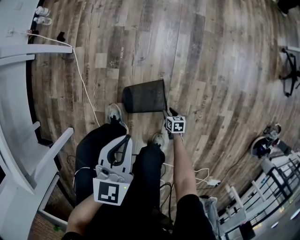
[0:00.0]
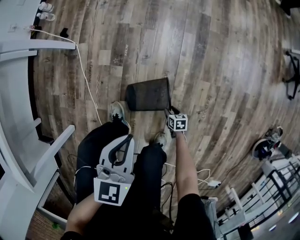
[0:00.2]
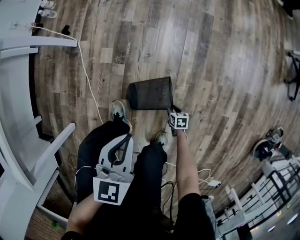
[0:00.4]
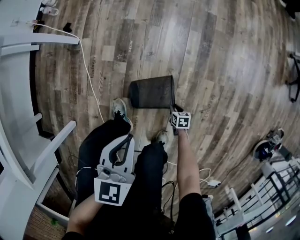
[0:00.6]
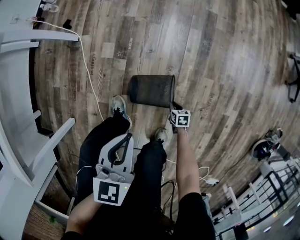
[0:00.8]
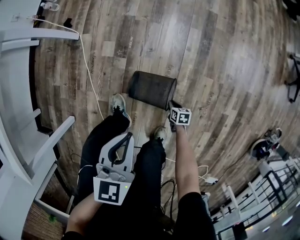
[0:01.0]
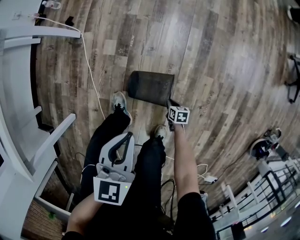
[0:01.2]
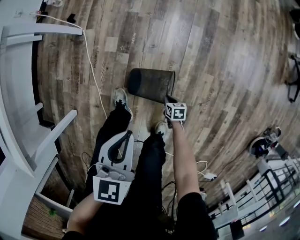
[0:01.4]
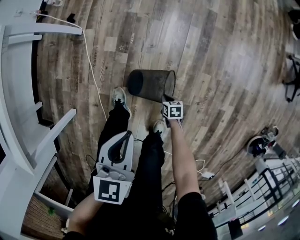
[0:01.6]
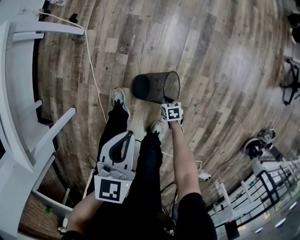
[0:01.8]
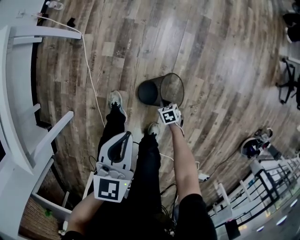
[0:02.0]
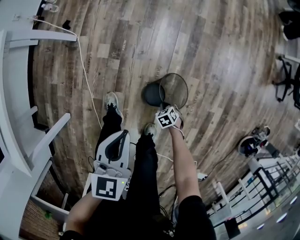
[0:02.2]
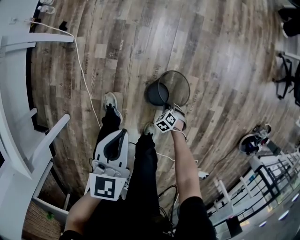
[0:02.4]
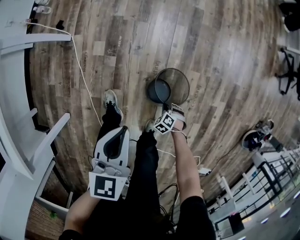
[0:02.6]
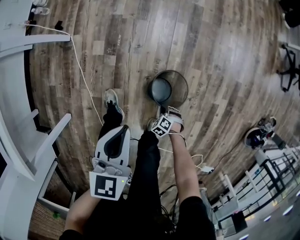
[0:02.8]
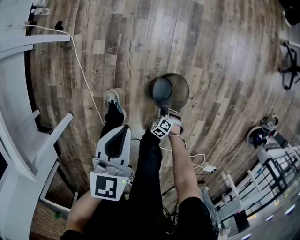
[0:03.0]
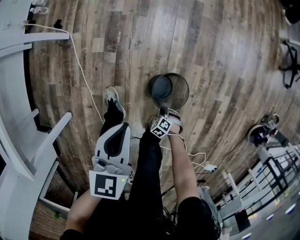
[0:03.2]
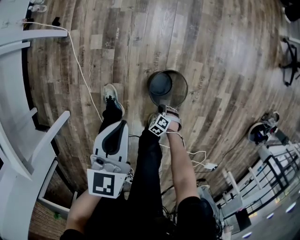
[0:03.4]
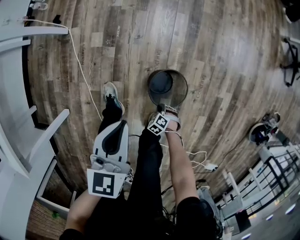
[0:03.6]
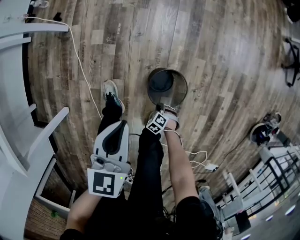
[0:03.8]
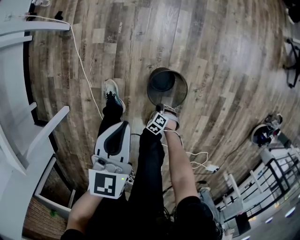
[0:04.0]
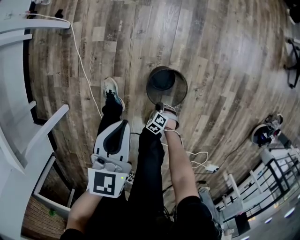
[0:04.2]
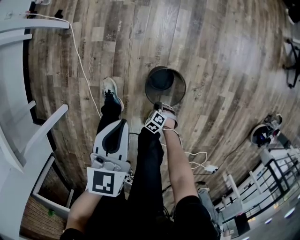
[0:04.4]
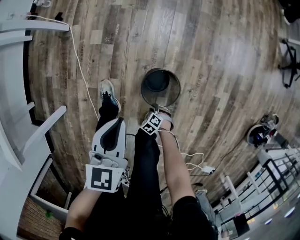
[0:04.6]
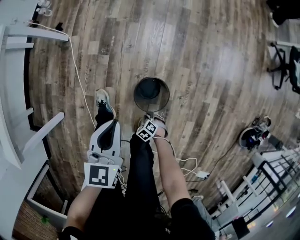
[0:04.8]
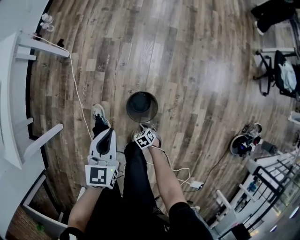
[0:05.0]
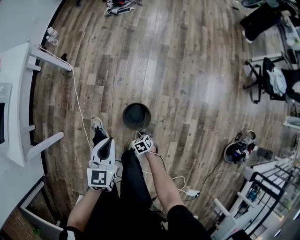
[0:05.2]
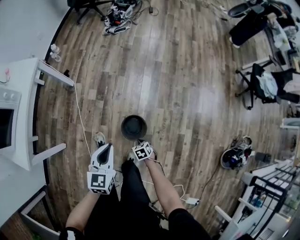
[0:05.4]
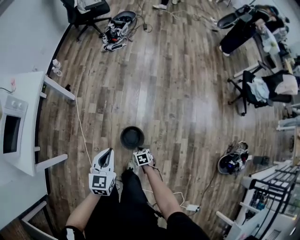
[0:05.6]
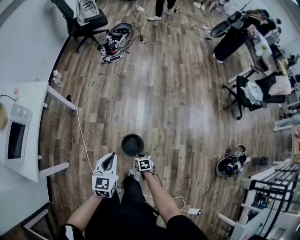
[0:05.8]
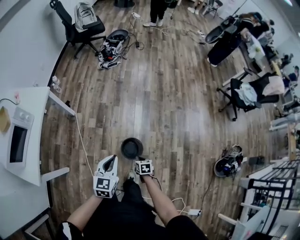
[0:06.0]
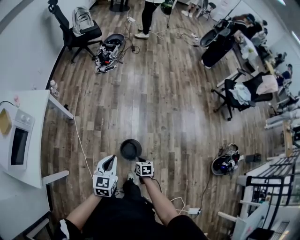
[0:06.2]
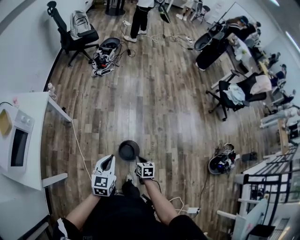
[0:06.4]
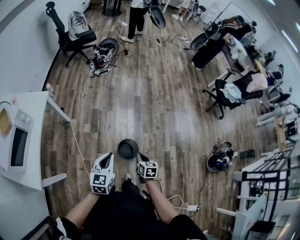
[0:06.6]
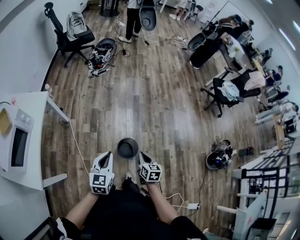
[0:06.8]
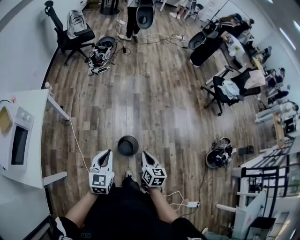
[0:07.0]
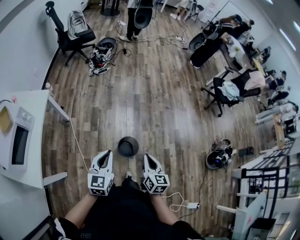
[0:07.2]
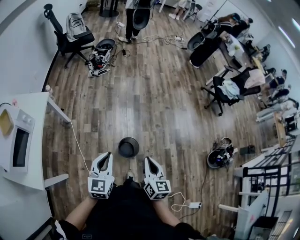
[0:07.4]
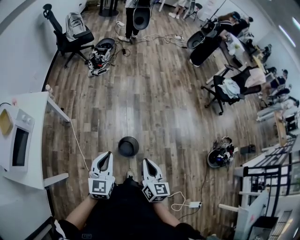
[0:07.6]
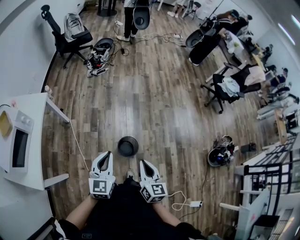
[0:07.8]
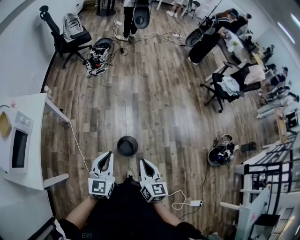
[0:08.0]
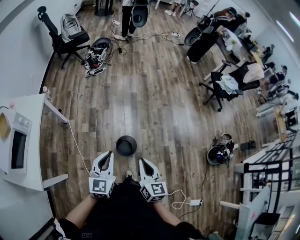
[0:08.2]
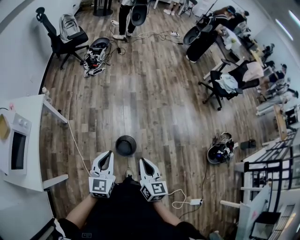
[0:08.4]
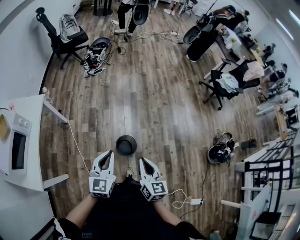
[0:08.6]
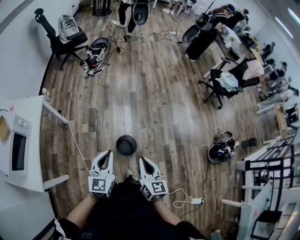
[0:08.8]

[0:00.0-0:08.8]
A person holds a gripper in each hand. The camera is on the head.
0:00.0 to 0:01.4: The right gripper ends up approximately 10 cm from where it was, and closes.
0:01.4 to 0:03.0: The right gripper moves some 10 cm, and twists about 50 degrees counterclockwise, seen from behind; the left gripper changes place by approximately 5 cm.
0:03.0 to 0:04.4: The left gripper changes place by approximately 10 cm; the right gripper shifts by approximately 10 cm.
0:04.4 to 0:05.8: Both grippers travel together upward, approximately 35 cm. The right gripper twists approximately 50 degrees clockwise, seen from behind.
0:05.8 to 0:07.4: The left gripper shifts some 15 cm upward, to the left and backward, while the right gripper shifts roughly 40 cm upward, and tilts its fingers approximately 40 degrees upward.
0:07.4 to 0:08.8: The grippers stay close to where they were, moving slightly.

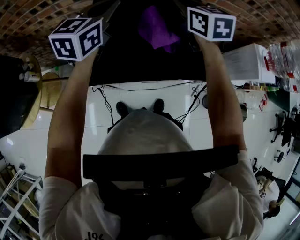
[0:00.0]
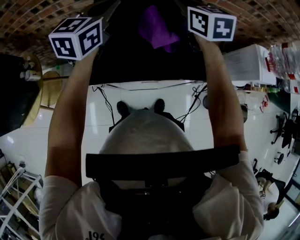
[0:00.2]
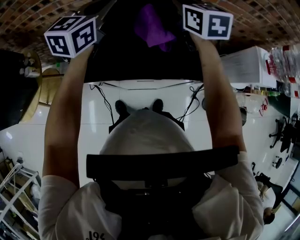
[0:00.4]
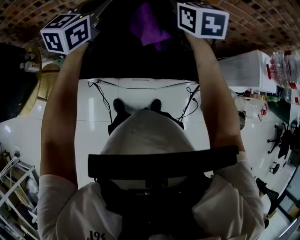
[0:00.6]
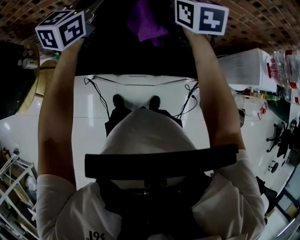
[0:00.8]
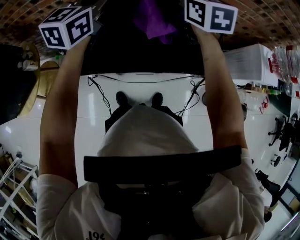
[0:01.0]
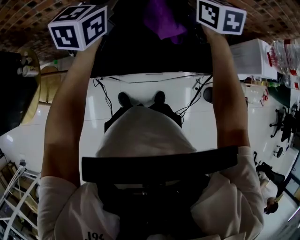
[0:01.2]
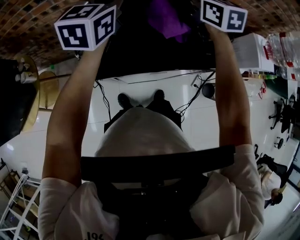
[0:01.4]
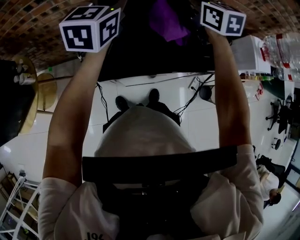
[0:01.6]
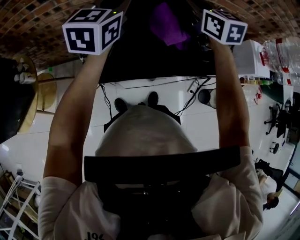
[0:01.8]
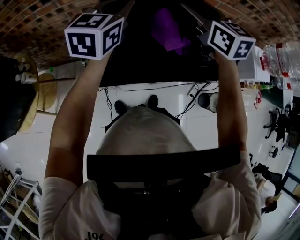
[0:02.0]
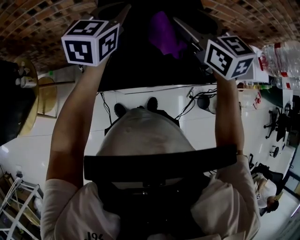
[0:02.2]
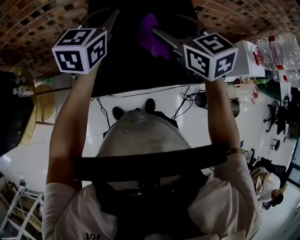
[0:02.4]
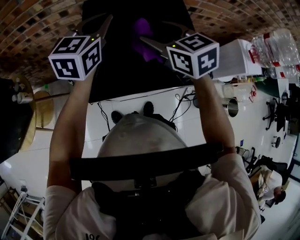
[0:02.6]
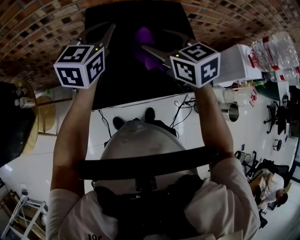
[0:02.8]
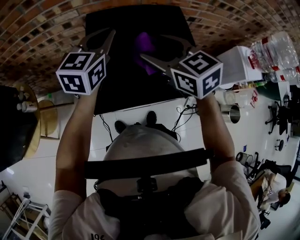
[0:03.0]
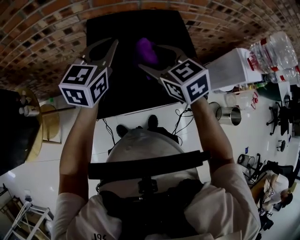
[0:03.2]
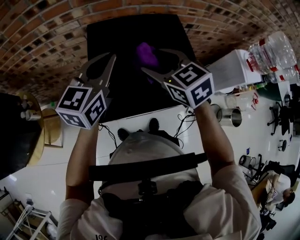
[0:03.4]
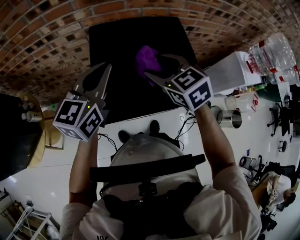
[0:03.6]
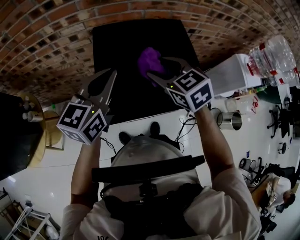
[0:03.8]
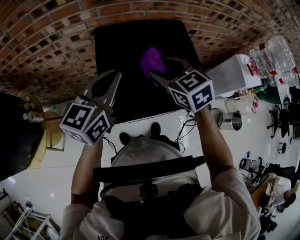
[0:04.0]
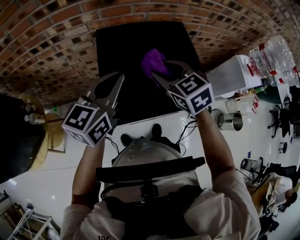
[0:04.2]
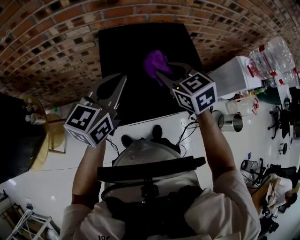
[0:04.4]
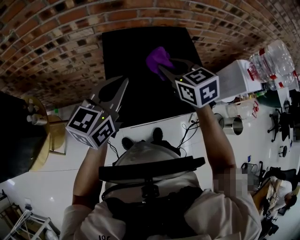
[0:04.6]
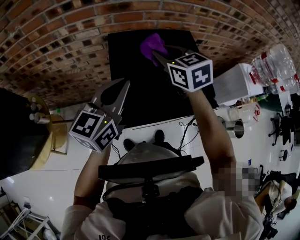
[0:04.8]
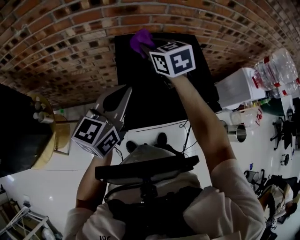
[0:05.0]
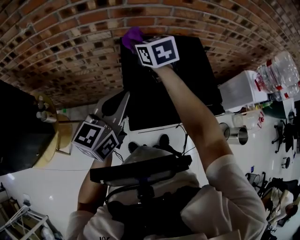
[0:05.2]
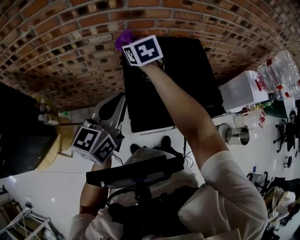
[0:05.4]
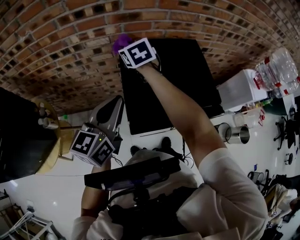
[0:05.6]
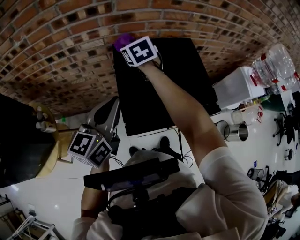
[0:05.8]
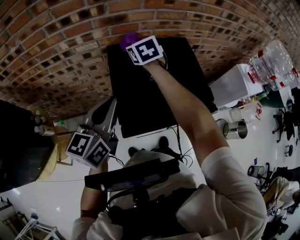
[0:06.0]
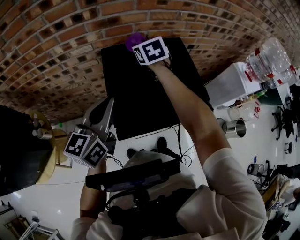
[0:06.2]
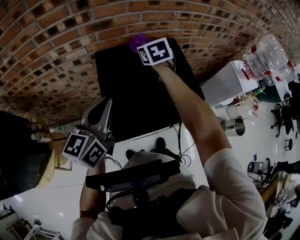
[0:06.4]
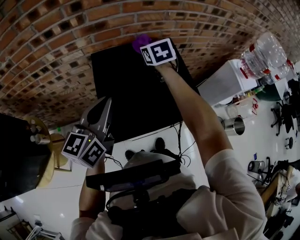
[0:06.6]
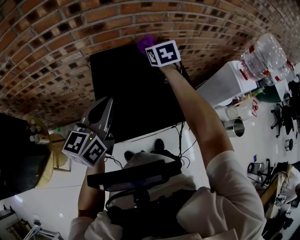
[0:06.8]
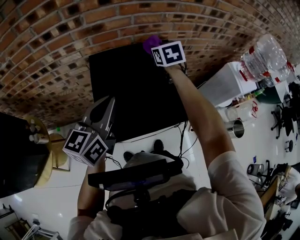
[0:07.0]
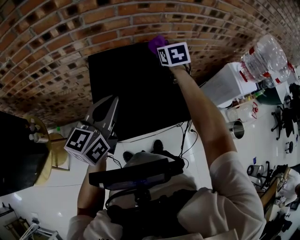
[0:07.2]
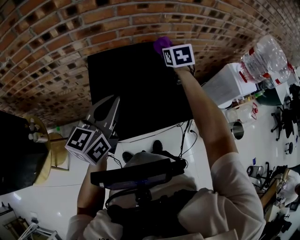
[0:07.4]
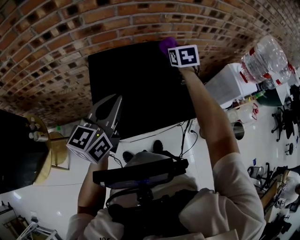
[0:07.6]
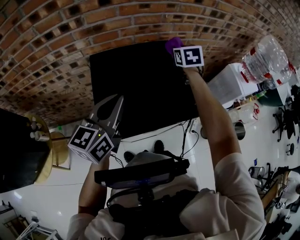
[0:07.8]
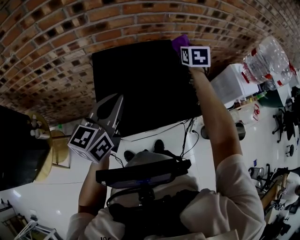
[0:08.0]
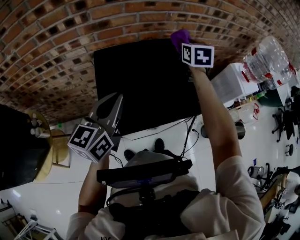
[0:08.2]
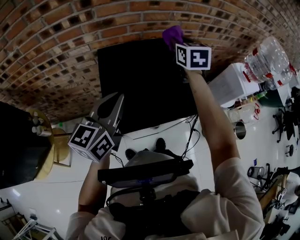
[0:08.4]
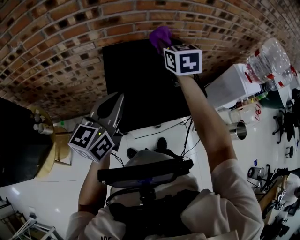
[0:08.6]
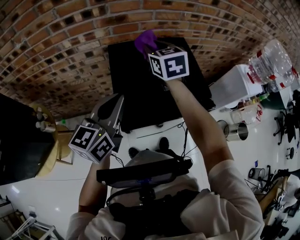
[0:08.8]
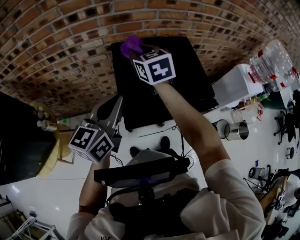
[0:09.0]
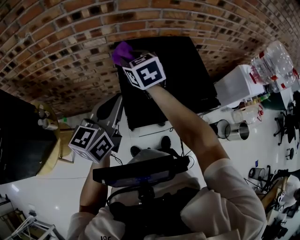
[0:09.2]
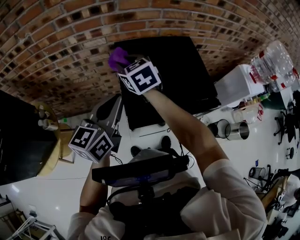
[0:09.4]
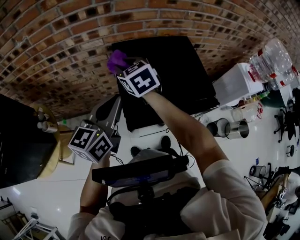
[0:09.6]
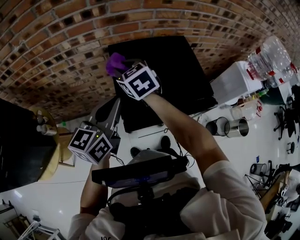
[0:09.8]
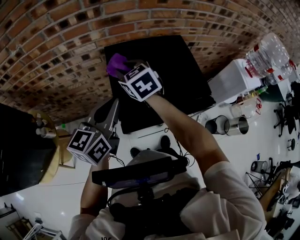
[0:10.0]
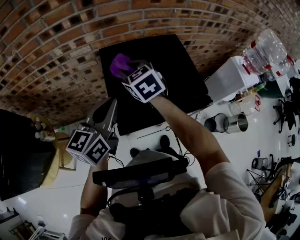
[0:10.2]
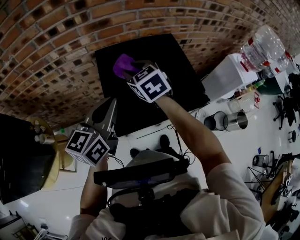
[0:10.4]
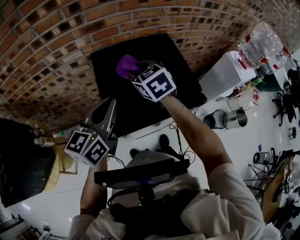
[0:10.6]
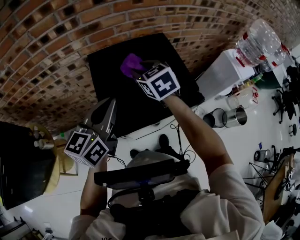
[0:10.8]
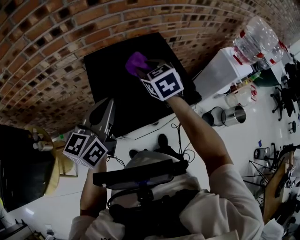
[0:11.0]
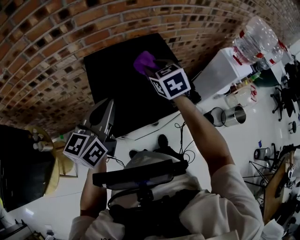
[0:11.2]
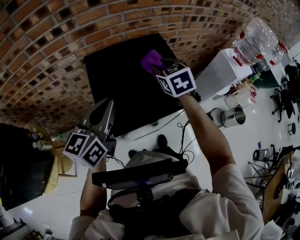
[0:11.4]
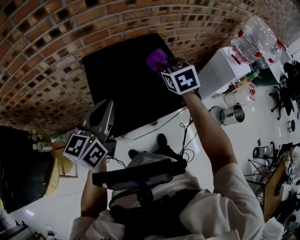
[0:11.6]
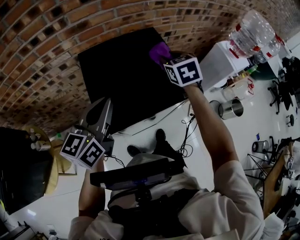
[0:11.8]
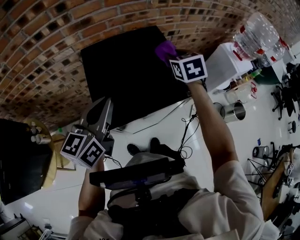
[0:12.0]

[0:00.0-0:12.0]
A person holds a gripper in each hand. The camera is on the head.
0:00.0 to 0:01.6: Both grippers stay put.
0:01.6 to 0:03.0: The right gripper goes some 10 cm backward and to the left, and opens.
0:03.0 to 0:04.4: The left gripper is displaced backward by about 10 cm, while the right gripper closes up.
0:04.4 to 0:06.0: The left gripper shifts some 5 cm to the left; the right gripper goes roughly 20 cm forward and to the left.
0:06.0 to 0:07.6: The left gripper travels to the right by roughly 10 cm, while the right gripper heads to the right, covering approximately 25 cm.
0:07.6 to 0:09.0: The left gripper heads to the left and backward, covering about 10 cm. Meanwhile the right gripper goes some 30 cm to the left and backward, and changes its angle by approximately 20 degrees.
0:09.0 to 0:10.4: The right gripper moves about 5 cm to the left and comes back.
0:10.4 to 0:12.0: The right gripper travels to the right by approximately 25 cm, and rotates about 20 degrees.

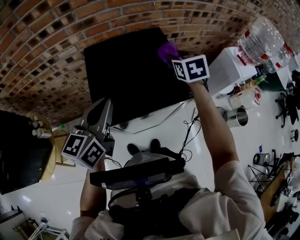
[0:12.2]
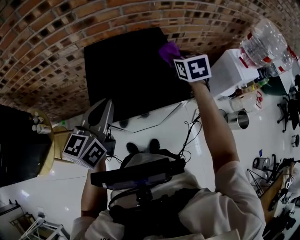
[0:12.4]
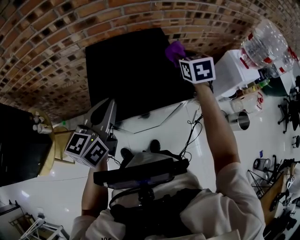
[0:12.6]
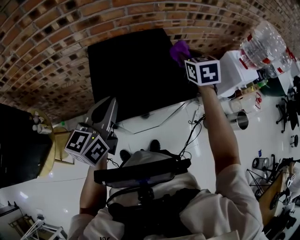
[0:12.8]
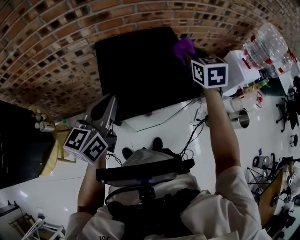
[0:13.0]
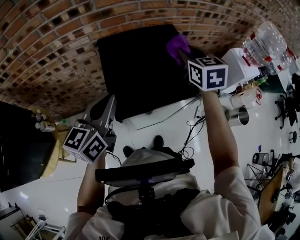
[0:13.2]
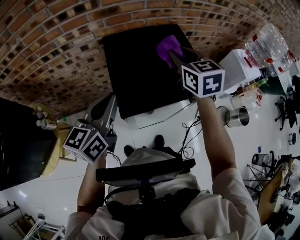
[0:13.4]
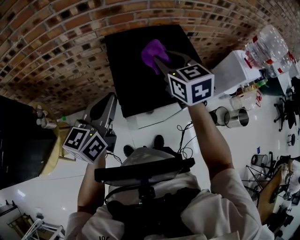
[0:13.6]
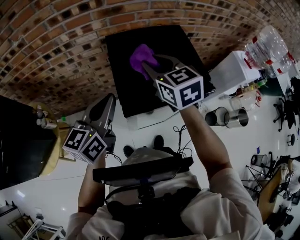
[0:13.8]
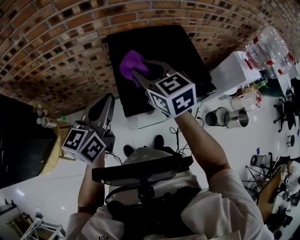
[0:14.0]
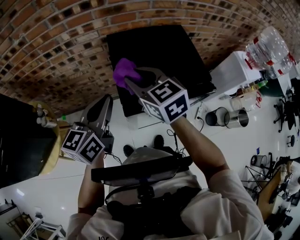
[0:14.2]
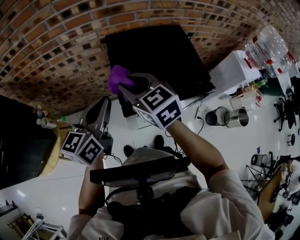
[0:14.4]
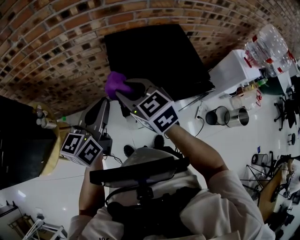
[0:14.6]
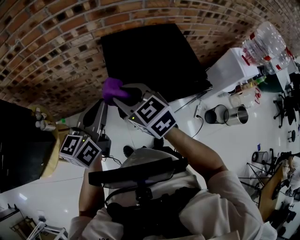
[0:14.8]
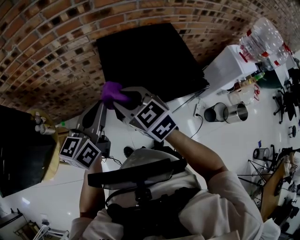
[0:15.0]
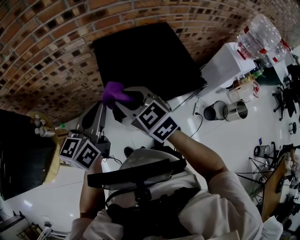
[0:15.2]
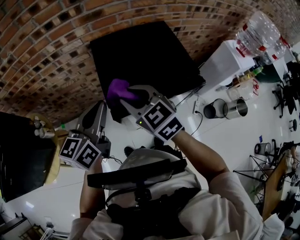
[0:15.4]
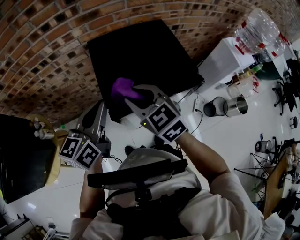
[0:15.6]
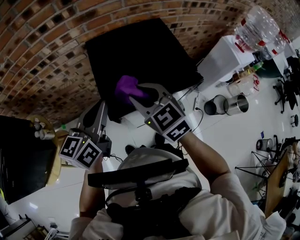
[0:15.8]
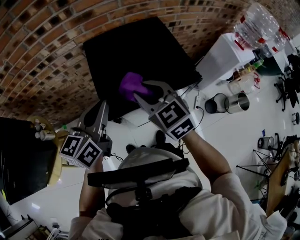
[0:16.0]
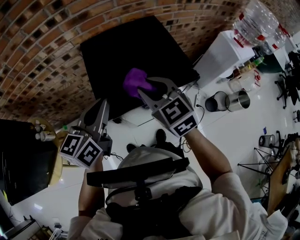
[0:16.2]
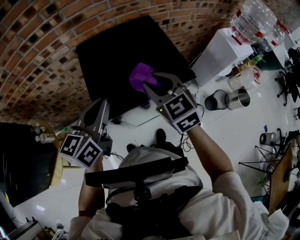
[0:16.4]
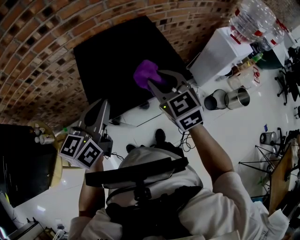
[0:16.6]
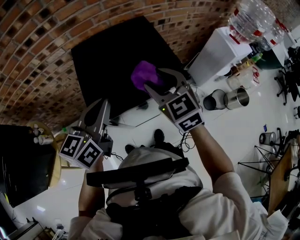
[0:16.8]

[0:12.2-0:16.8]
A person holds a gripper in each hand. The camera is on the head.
0:12.2 to 0:13.8: The right gripper goes roughly 25 cm to the left and backward, and changes its angle by roughly 20 degrees. The left gripper goes about 10 cm to the left.
0:13.8 to 0:15.2: The right gripper moves backward and to the left, roughly 10 cm.
0:15.2 to 0:16.8: The left gripper travels to the right by approximately 10 cm; the right gripper goes some 20 cm to the right, turns by roughly 20 degrees, and opens its fingers.
